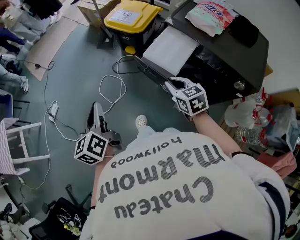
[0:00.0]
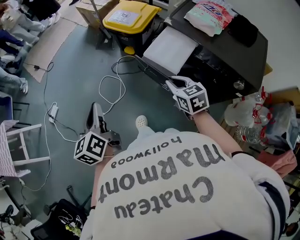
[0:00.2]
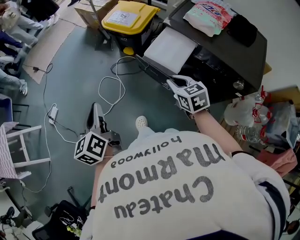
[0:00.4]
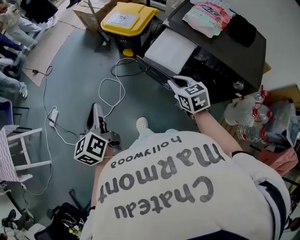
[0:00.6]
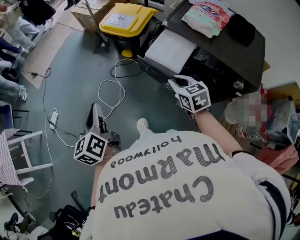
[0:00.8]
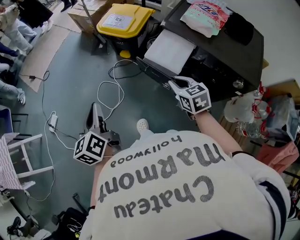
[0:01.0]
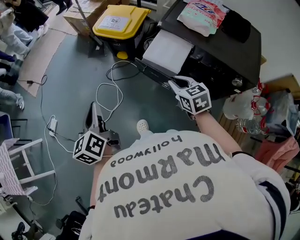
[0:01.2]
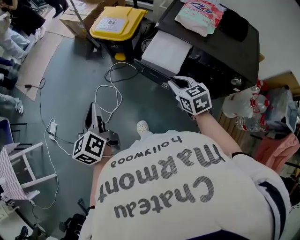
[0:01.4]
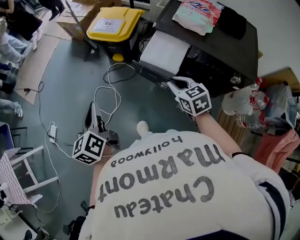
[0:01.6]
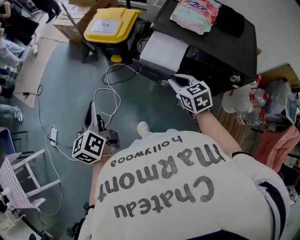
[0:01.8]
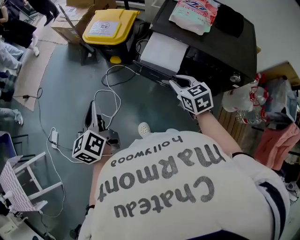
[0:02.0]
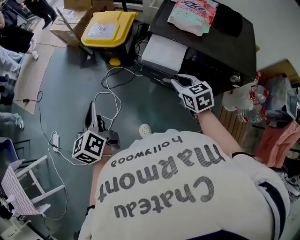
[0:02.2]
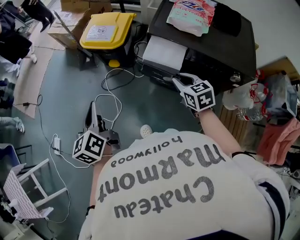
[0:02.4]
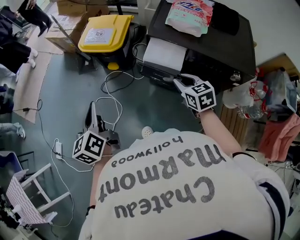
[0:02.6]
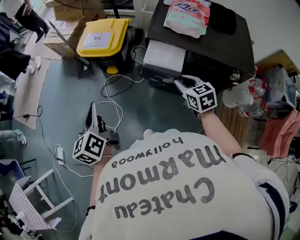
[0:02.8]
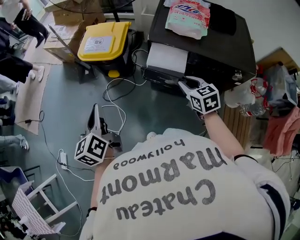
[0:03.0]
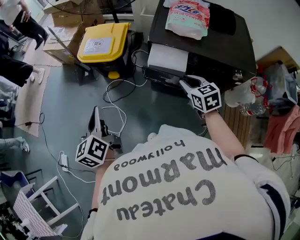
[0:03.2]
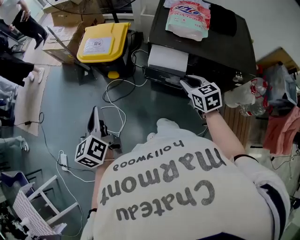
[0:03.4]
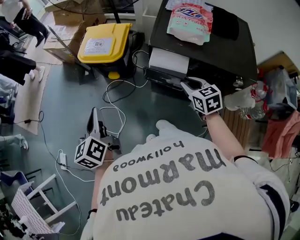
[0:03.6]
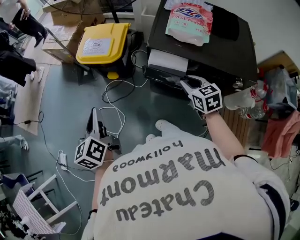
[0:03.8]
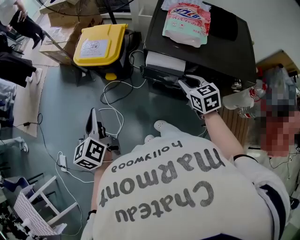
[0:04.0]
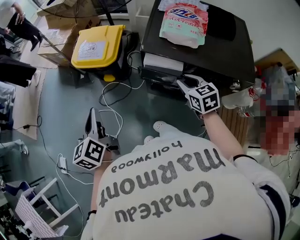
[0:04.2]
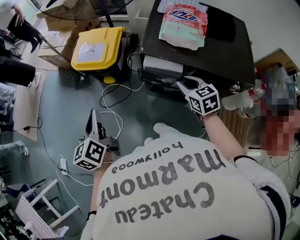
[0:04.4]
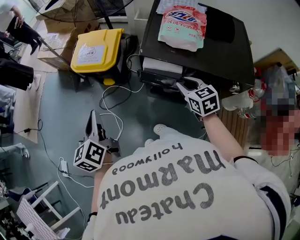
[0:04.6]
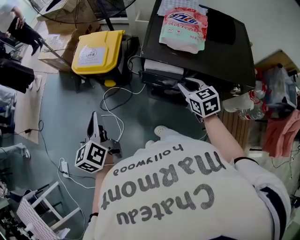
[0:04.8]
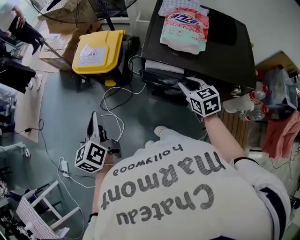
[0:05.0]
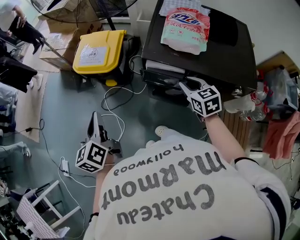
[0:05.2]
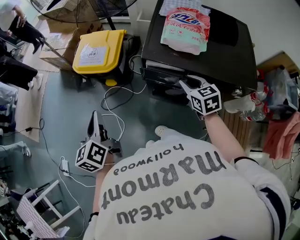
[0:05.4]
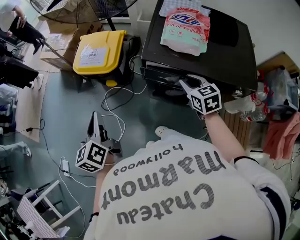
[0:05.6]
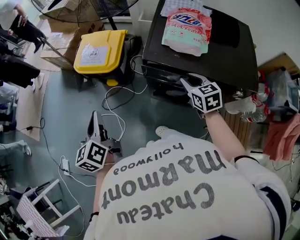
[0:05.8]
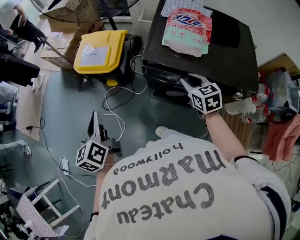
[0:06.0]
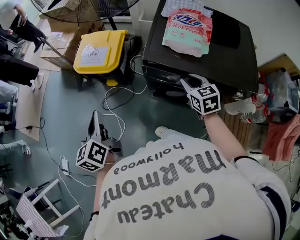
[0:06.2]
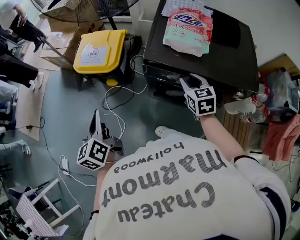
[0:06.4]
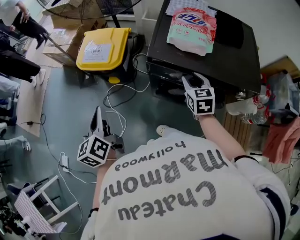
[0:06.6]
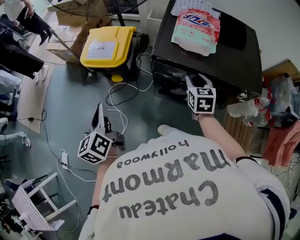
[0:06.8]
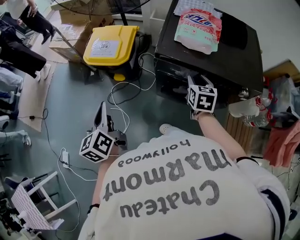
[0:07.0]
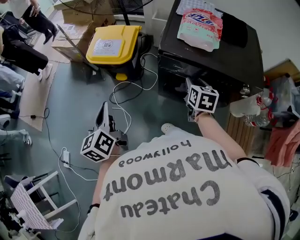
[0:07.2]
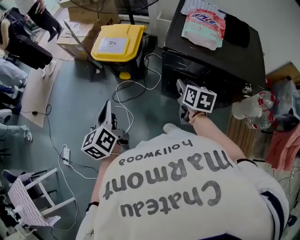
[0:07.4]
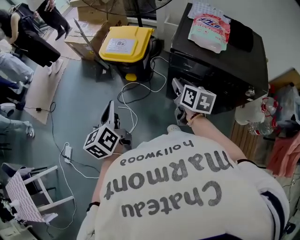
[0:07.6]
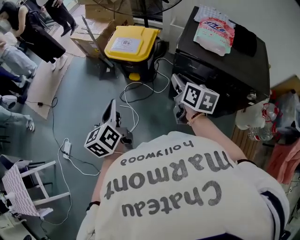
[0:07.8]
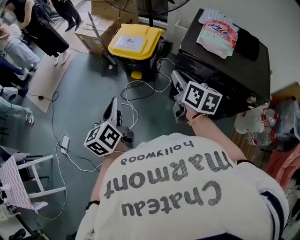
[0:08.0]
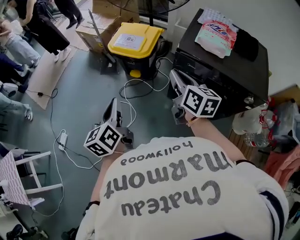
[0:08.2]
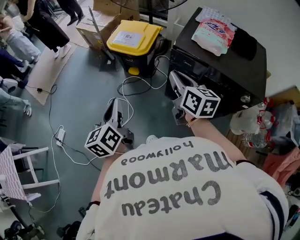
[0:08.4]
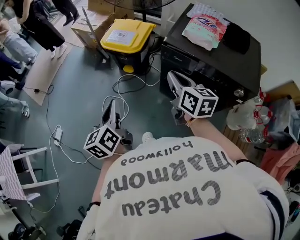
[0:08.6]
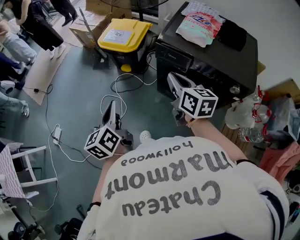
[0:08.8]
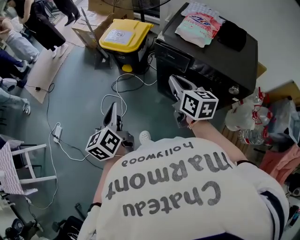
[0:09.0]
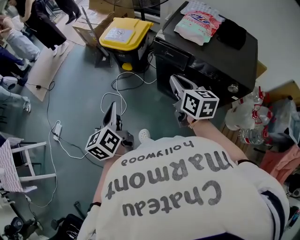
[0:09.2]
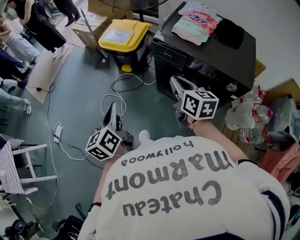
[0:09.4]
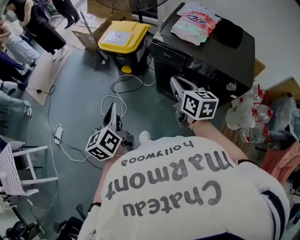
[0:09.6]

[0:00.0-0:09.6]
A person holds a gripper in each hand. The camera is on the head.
0:00.0 to 0:01.6: The left gripper moves forward, some 10 cm.
0:01.6 to 0:03.2: The left gripper goes about 10 cm forward. Meanwhile the right gripper goes some 10 cm to the right and forward.
0:03.2 to 0:04.8: Both grippers travel together forward, approximately 5 cm.
0:04.8 to 0:06.4: The grippers move only a little.
0:06.4 to 0:08.0: The left gripper heads backward and to the left, covering roughly 15 cm. The right gripper shifts about 25 cm to the left, upward and backward, and turns by roughly 40 degrees.
0:08.0 to 0:09.6: Both grippers move backward and to the right, some 15 cm.

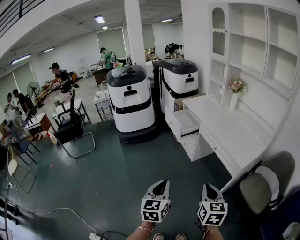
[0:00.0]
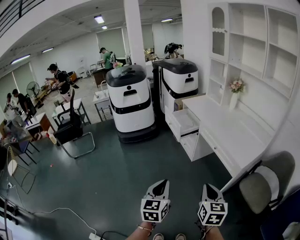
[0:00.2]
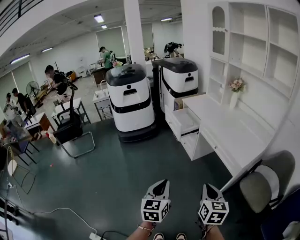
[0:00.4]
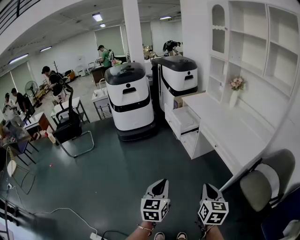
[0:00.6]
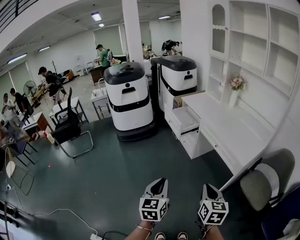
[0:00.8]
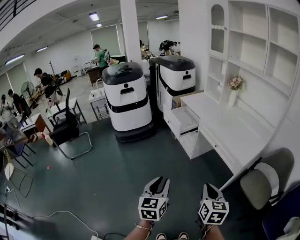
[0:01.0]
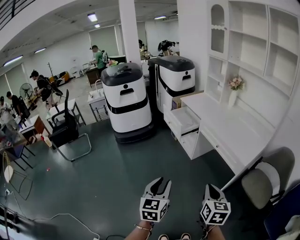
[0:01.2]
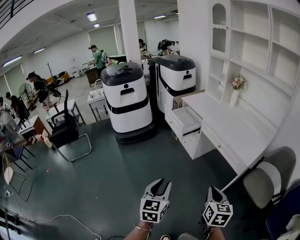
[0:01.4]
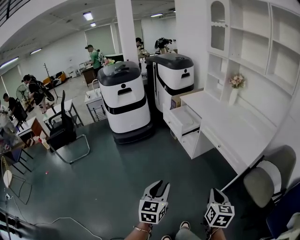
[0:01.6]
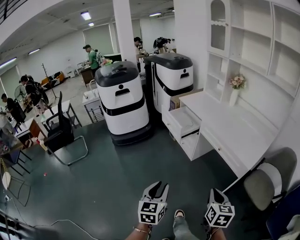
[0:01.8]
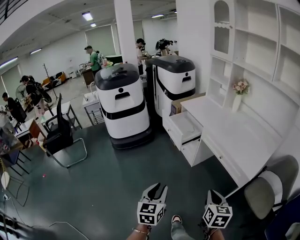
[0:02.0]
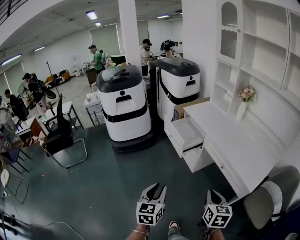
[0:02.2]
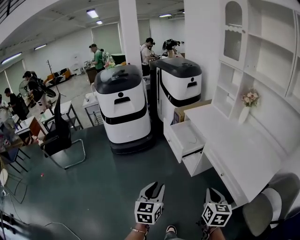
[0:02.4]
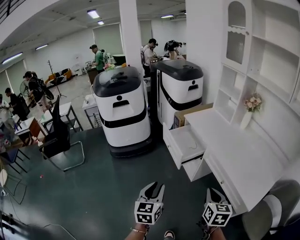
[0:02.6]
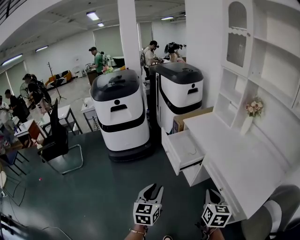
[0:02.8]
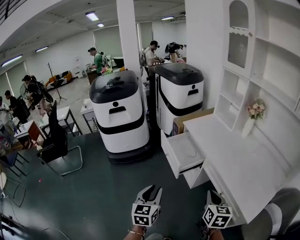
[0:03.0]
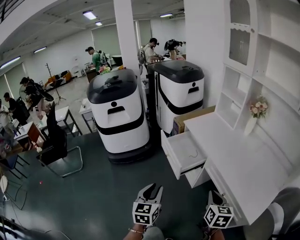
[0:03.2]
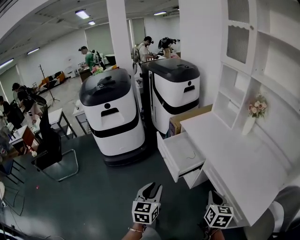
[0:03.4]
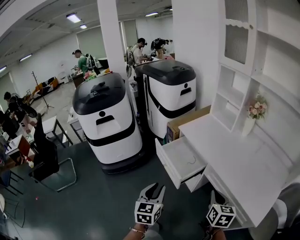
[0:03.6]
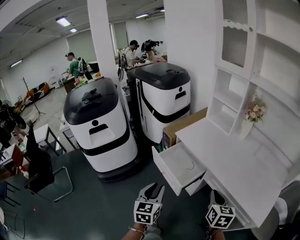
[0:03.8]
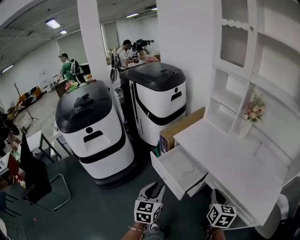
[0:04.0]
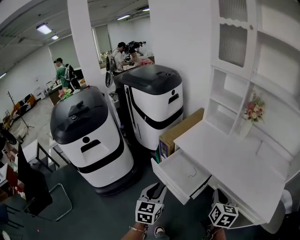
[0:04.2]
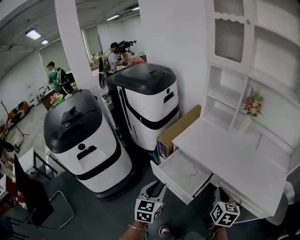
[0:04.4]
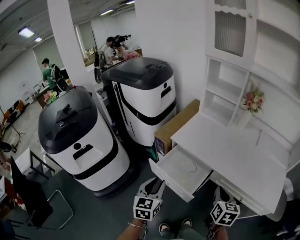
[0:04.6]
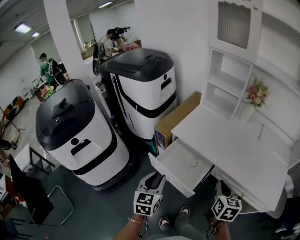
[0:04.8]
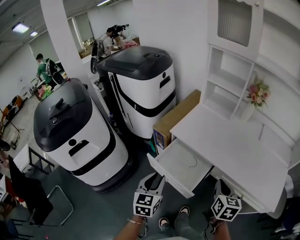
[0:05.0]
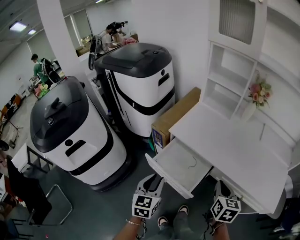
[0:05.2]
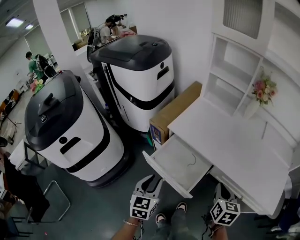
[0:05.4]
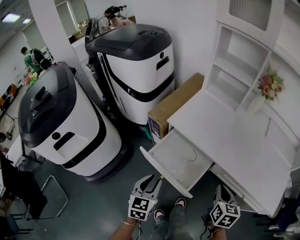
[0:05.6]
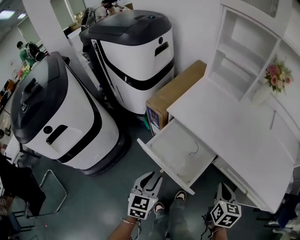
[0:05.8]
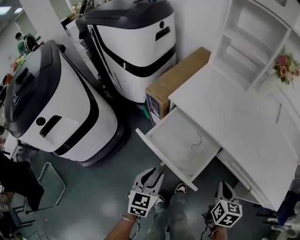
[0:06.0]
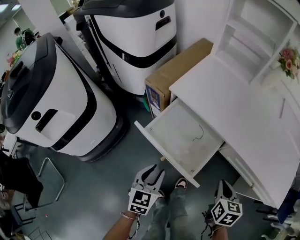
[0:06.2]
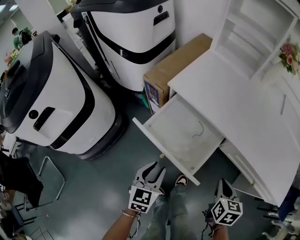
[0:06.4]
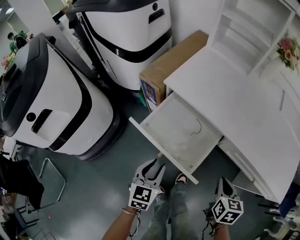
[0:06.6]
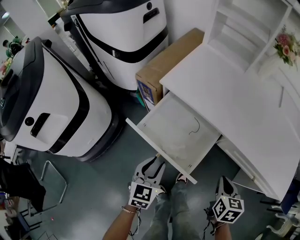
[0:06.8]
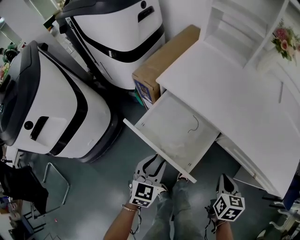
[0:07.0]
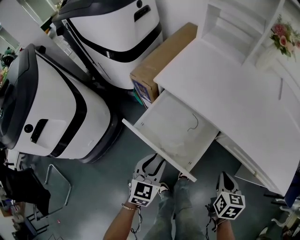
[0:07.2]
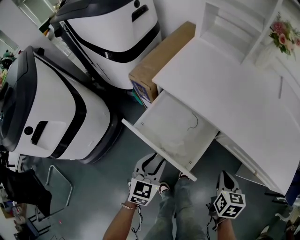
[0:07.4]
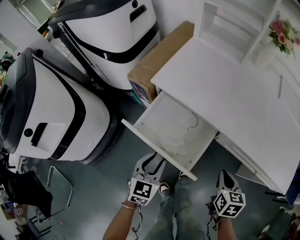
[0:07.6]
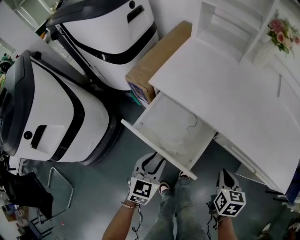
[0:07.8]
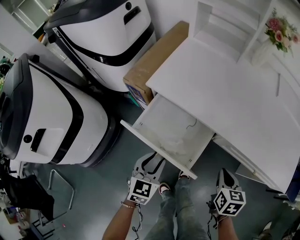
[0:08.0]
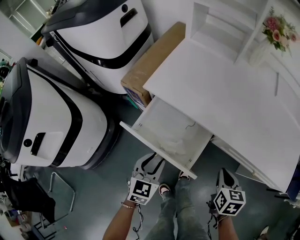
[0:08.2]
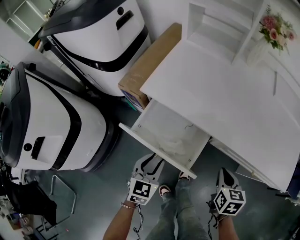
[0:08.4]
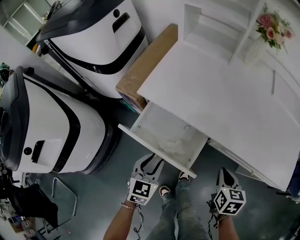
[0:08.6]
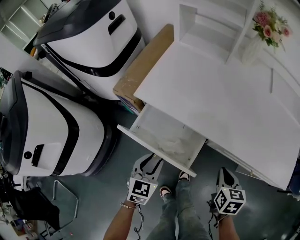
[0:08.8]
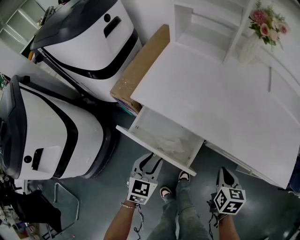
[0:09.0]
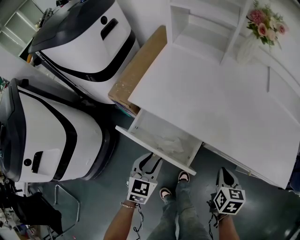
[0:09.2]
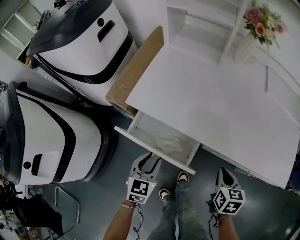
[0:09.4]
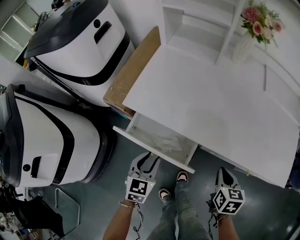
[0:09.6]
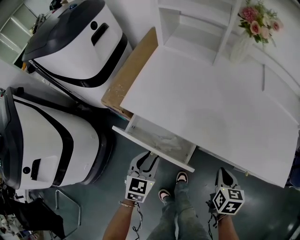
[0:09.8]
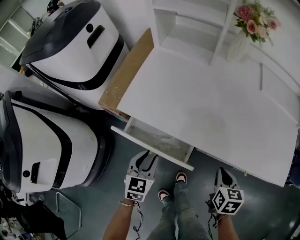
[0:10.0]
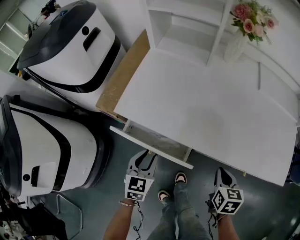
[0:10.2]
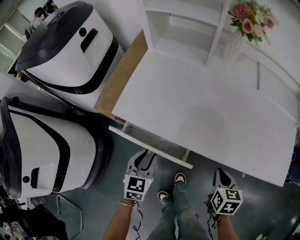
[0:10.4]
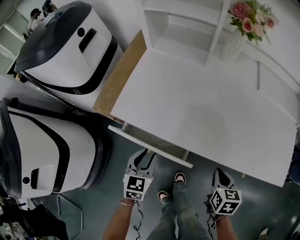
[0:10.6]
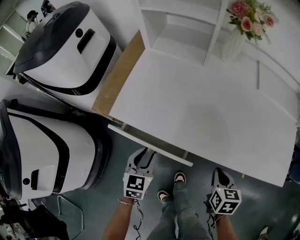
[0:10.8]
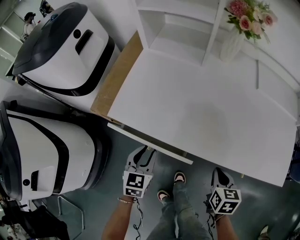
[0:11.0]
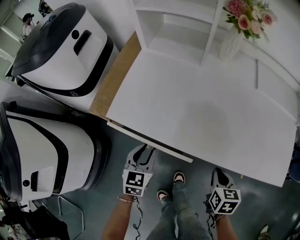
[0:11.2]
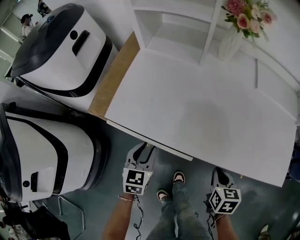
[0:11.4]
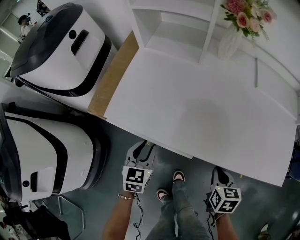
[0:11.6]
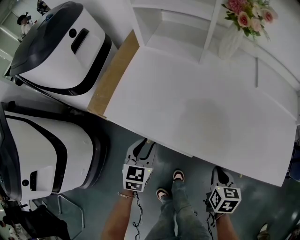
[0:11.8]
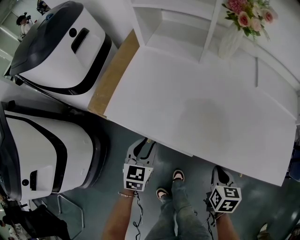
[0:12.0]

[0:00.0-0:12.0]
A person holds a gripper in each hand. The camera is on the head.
0:00.0 to 0:01.6: The right gripper ends up roughly 5 cm from where it was. Meanwhile the left gripper moves to the left, about 5 cm, and opens its fingers.
0:01.6 to 0:03.0: Both grippers move forward, approximately 35 cm.
0:03.0 to 0:04.4: The left gripper shifts by some 30 cm, and changes its angle by some 30 degrees. Meanwhile the right gripper moves about 20 cm, and turns by some 30 degrees.
0:04.4 to 0:06.0: Both grippers move downward, roughly 15 cm.
0:06.0 to 0:07.6: The left gripper shifts by approximately 5 cm.
0:07.6 to 0:09.0: The left gripper goes some 5 cm forward.
0:09.0 to 0:10.4: The left gripper travels forward by roughly 5 cm.
0:10.4 to 0:12.0: The left gripper shifts about 5 cm forward.

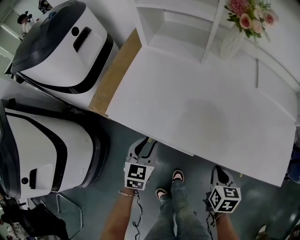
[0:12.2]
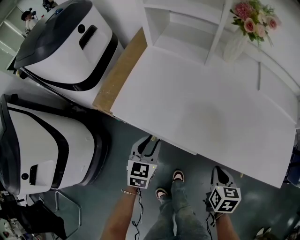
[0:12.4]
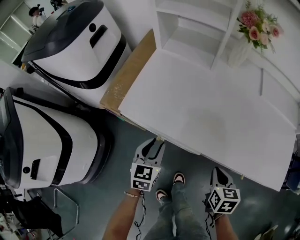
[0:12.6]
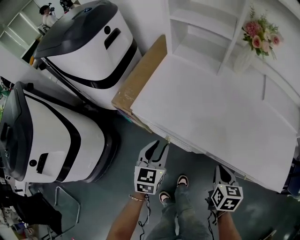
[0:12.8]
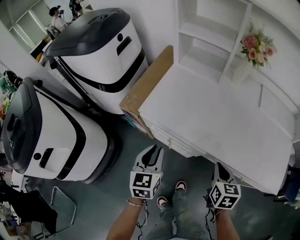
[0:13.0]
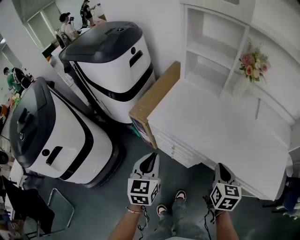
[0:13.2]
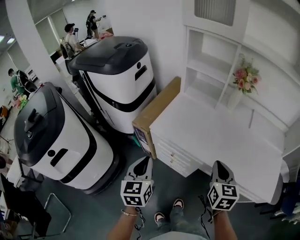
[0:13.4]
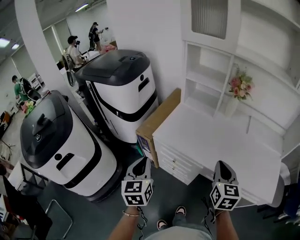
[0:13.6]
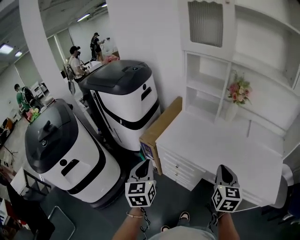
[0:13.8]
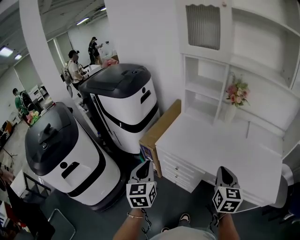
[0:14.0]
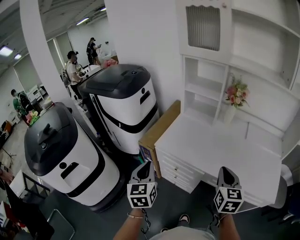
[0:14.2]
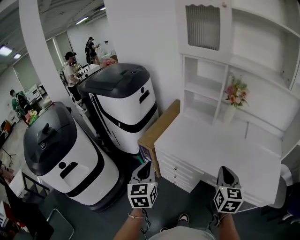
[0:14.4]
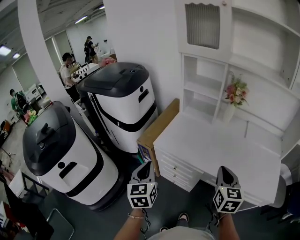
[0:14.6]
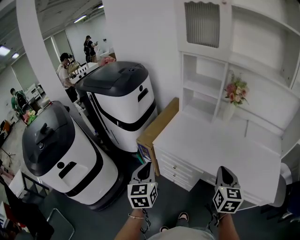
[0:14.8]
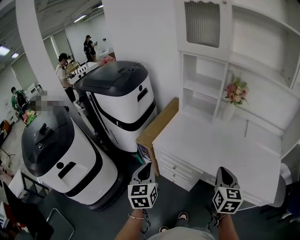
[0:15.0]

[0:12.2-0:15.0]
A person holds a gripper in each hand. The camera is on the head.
0:12.2 to 0:13.6: The right gripper shifts approximately 25 cm upward, and angles its fingers upward, by some 30 degrees, while the left gripper heads upward, backward and to the left, covering about 30 cm, swivels approximately 30 degrees, and closes up.
0:13.6 to 0:15.0: The grippers move only a little.
